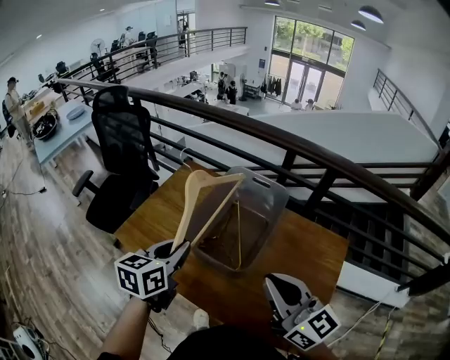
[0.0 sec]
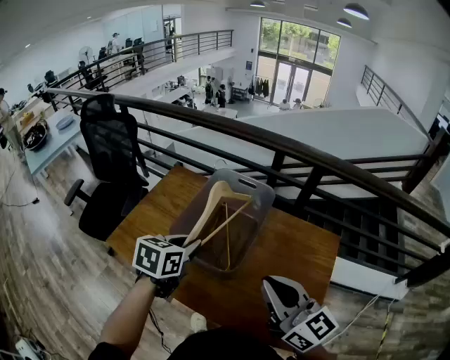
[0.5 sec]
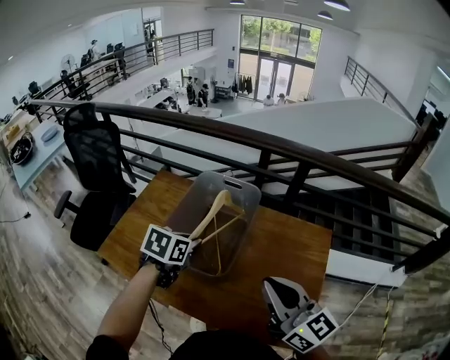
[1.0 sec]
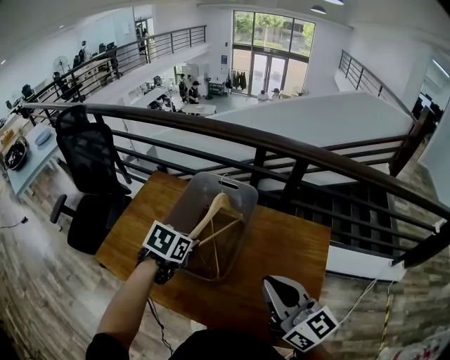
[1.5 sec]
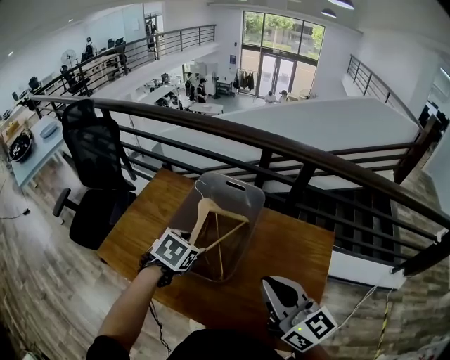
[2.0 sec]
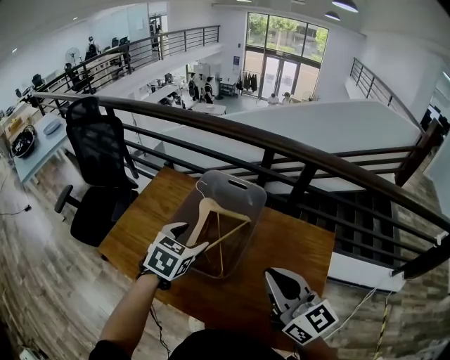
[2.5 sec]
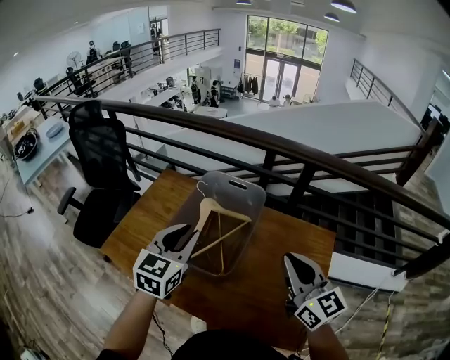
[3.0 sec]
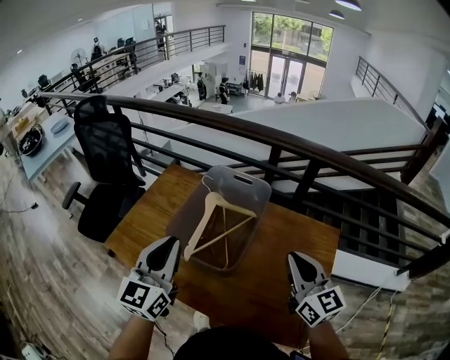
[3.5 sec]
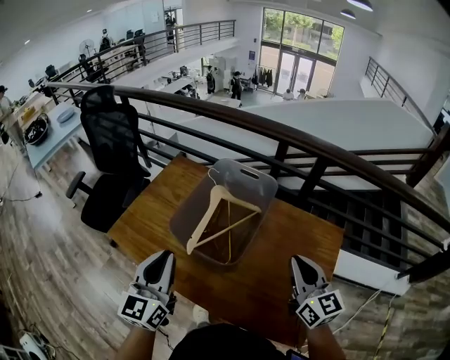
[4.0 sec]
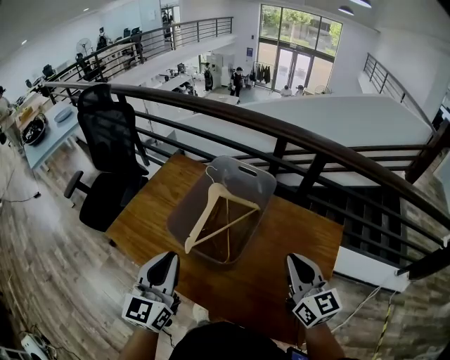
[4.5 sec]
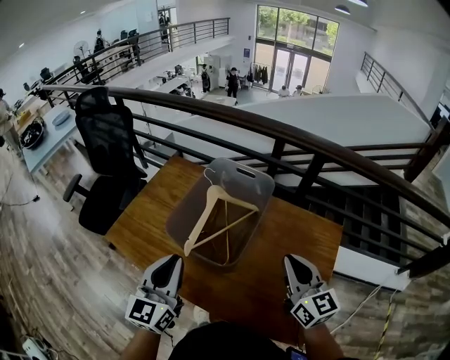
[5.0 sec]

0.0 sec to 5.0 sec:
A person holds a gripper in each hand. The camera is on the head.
0.0 sec to 2.5 sec: The left gripper is displaced to the right and forward by some 10 cm, swivels roughly 30 degrees, and opens up, while the right gripper moves some 5 cm.
2.5 sec to 5.0 sec: The left gripper moves backward and to the left, roughly 15 cm, points its fingers about 40 degrees further upward, and closes. Meanwhile the right gripper goes about 10 cm downward and to the right.

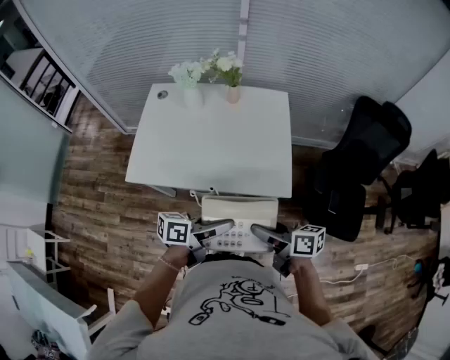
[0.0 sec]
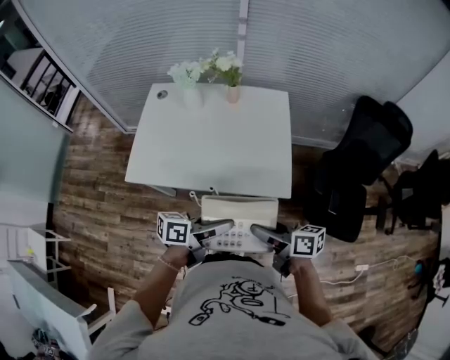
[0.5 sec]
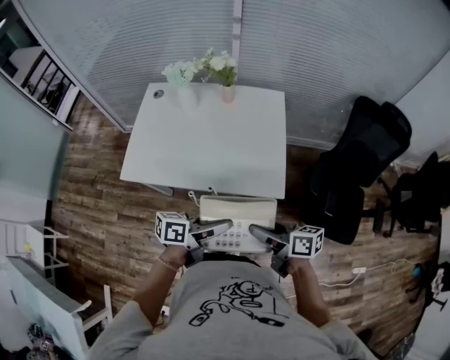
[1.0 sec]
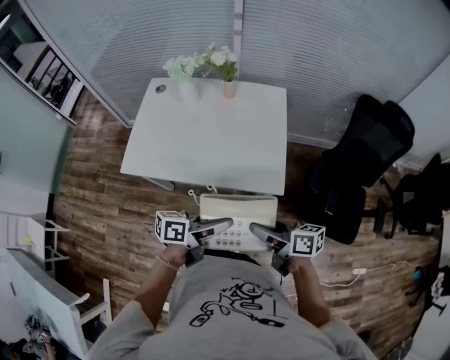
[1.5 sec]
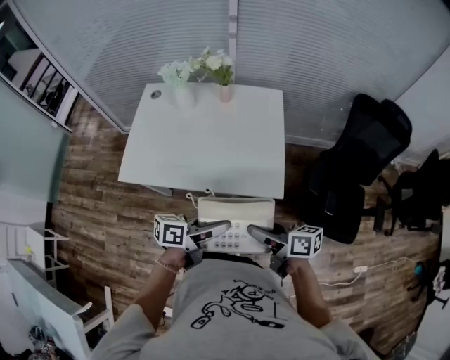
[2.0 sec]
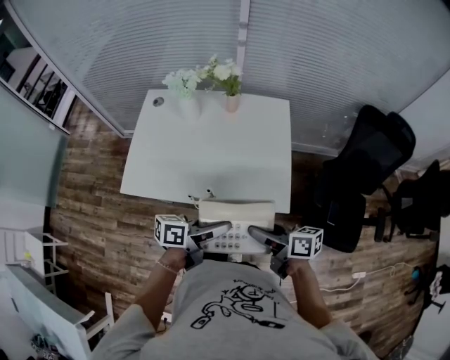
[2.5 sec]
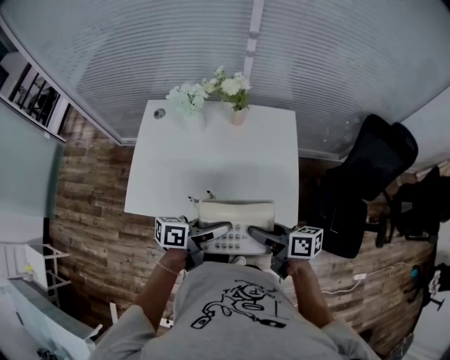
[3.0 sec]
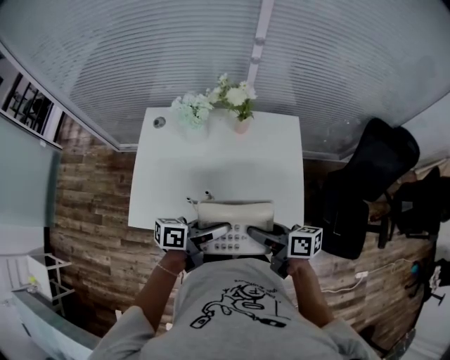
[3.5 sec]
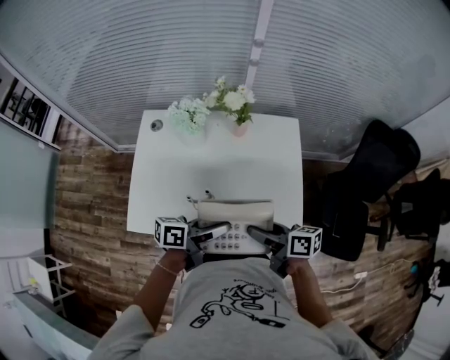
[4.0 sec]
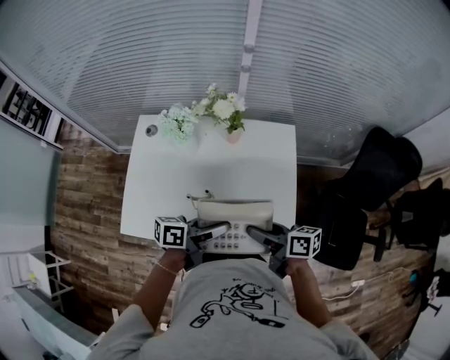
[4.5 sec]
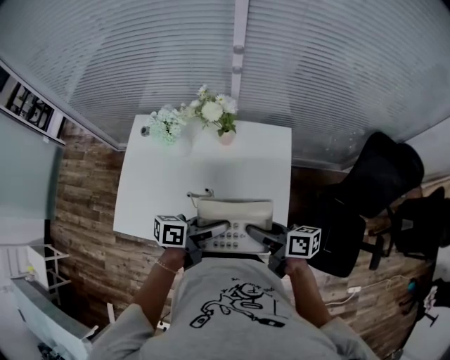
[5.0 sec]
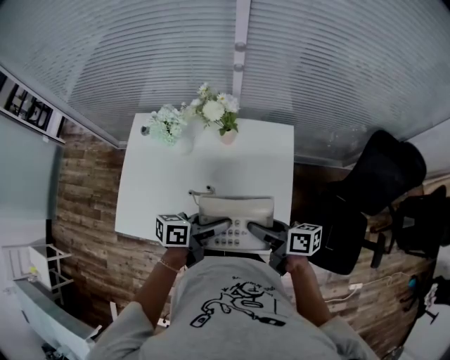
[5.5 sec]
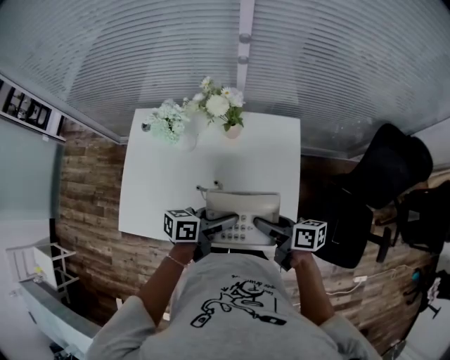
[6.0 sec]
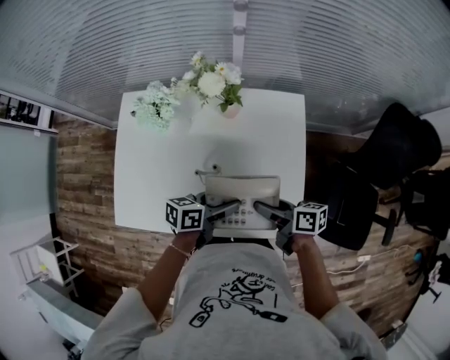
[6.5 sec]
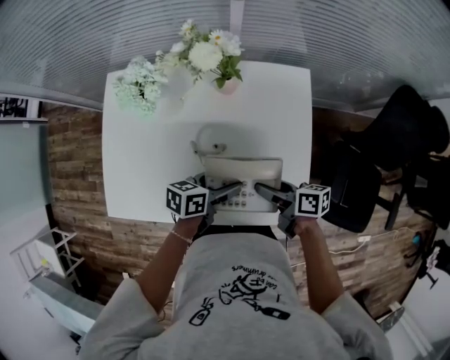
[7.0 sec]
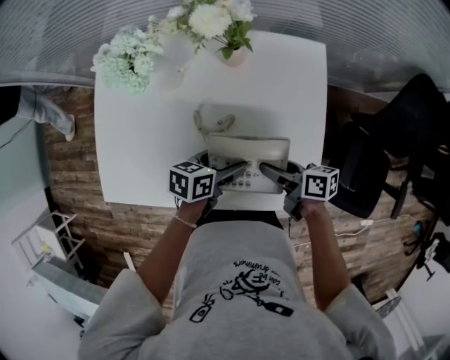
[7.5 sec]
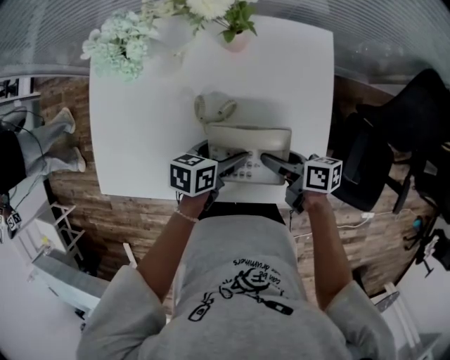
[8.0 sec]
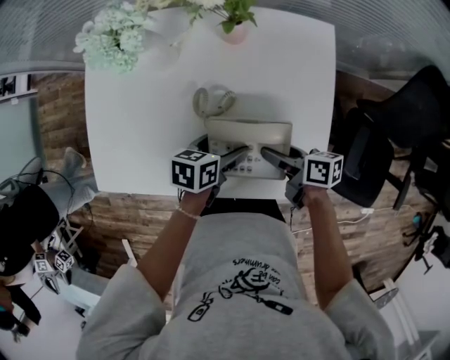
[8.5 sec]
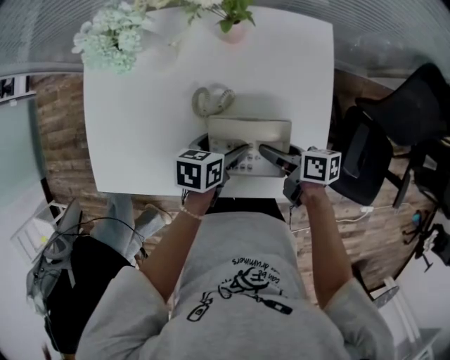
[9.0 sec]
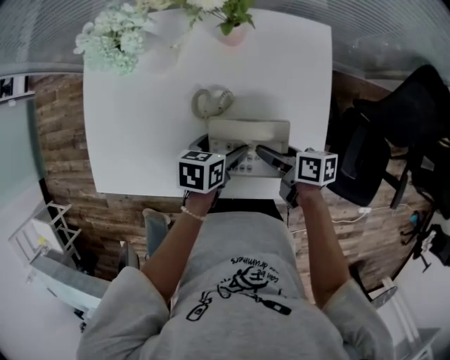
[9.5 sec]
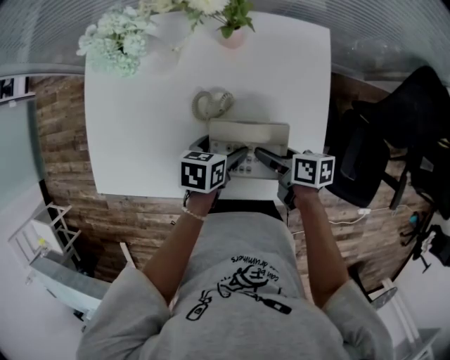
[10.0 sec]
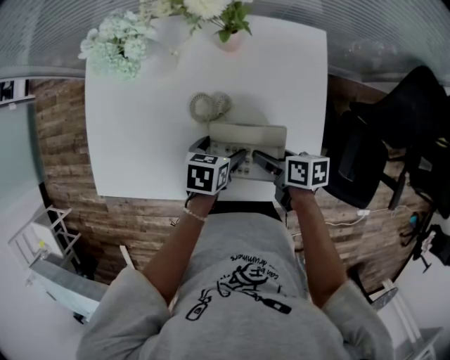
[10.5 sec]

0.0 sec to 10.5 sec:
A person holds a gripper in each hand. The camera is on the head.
0.0 sec to 2.0 sec: Both grippers stay put.
2.0 sec to 4.0 sec: The grippers both shift forward and to the left by about 20 cm.
4.0 sec to 6.5 sec: The left gripper shifts some 15 cm downward, forward and to the right. Meanwhile the right gripper is displaced forward, downward and to the right by about 15 cm.
6.5 sec to 8.5 sec: The two grippers go approximately 10 cm downward. The left gripper changes its angle by some 20 degrees.
8.5 sec to 10.5 sec: There are only small adjustments of the grippers.

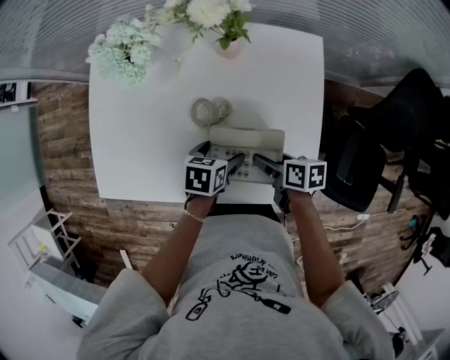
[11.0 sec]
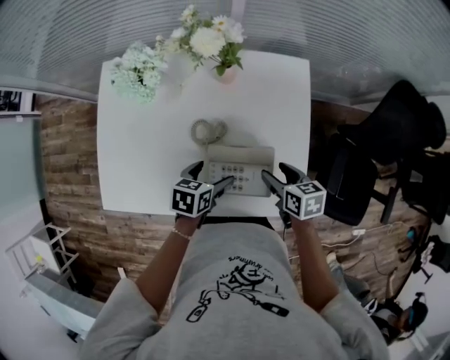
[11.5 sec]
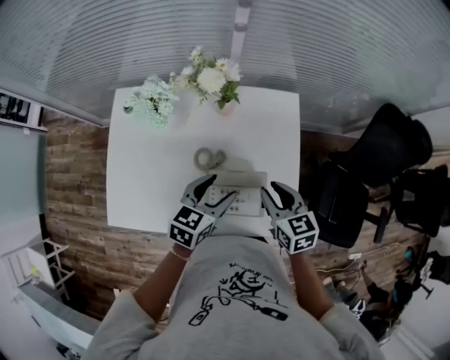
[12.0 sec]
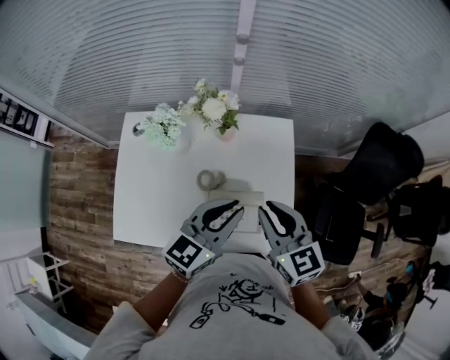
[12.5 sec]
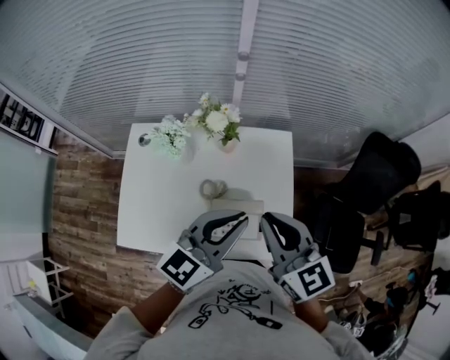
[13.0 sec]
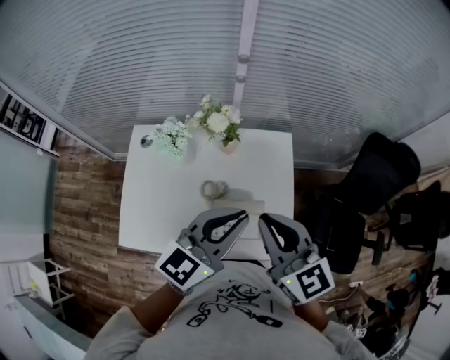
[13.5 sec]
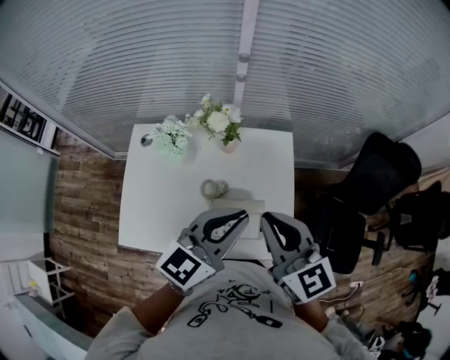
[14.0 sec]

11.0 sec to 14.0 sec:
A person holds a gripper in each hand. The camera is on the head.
11.0 sec to 12.5 sec: Both grippers move upward, about 30 cm. The right gripper changes its angle by some 60 degrees, and closes its fingers; the left gripper tilts its fingers roughly 50 degrees upward, and closes.
12.5 sec to 14.0 sec: Both grippers move upward, approximately 10 cm.

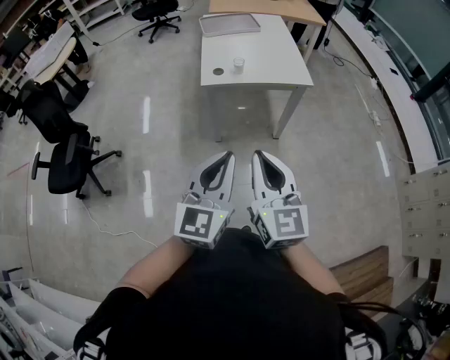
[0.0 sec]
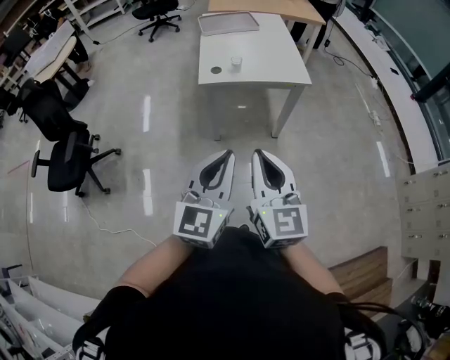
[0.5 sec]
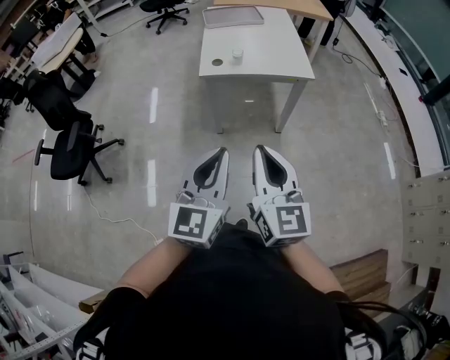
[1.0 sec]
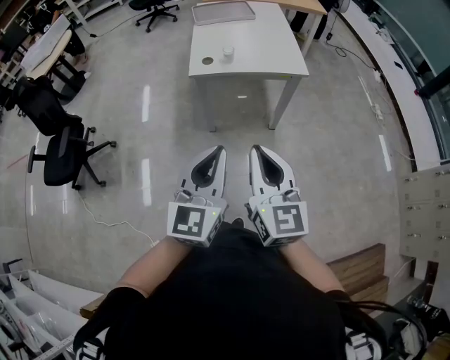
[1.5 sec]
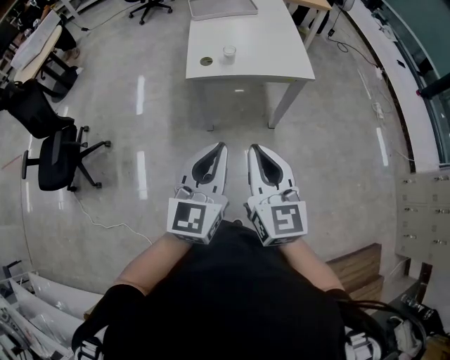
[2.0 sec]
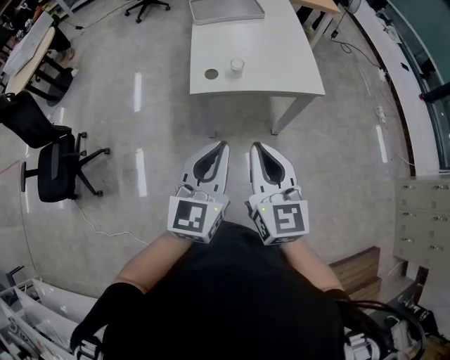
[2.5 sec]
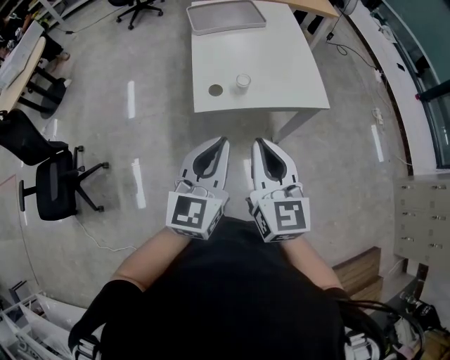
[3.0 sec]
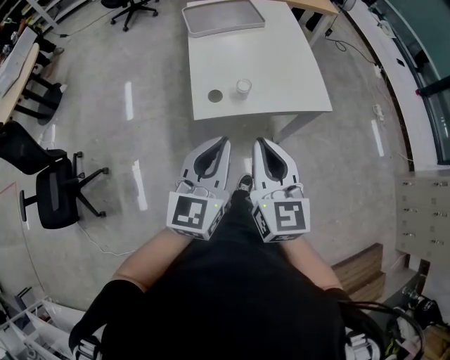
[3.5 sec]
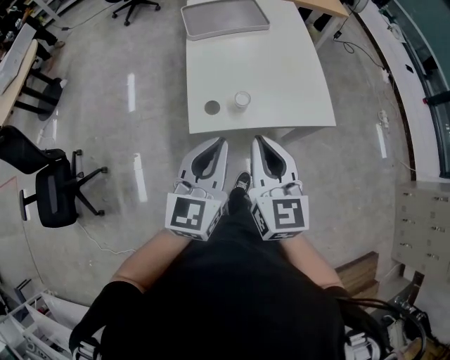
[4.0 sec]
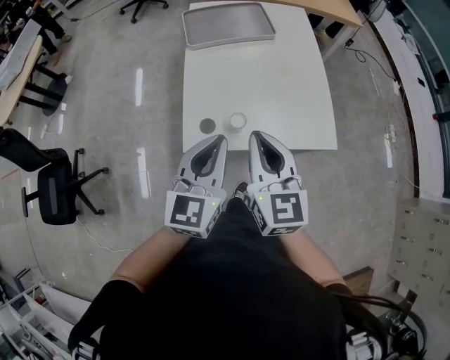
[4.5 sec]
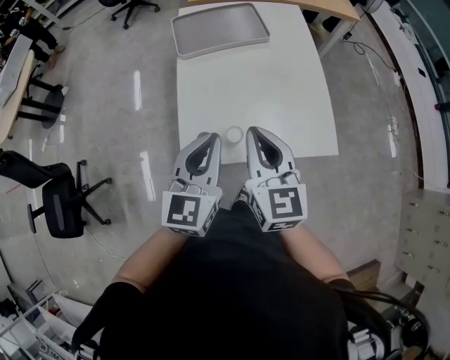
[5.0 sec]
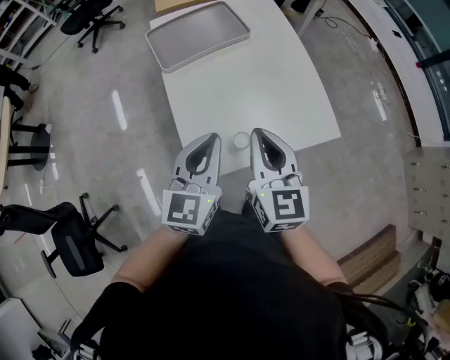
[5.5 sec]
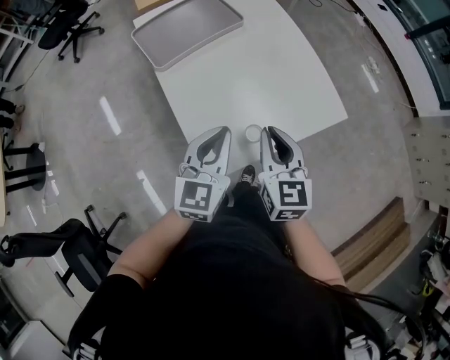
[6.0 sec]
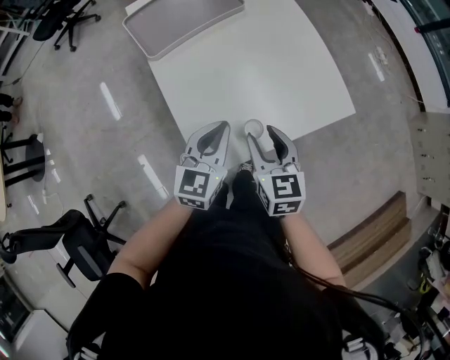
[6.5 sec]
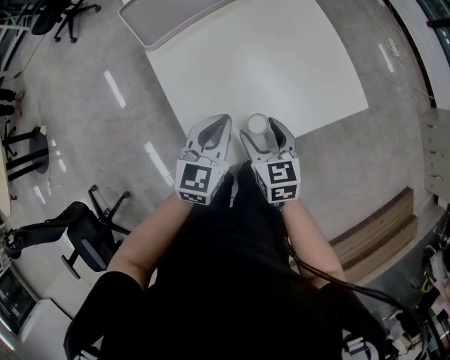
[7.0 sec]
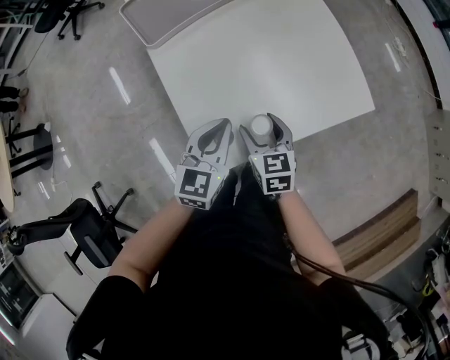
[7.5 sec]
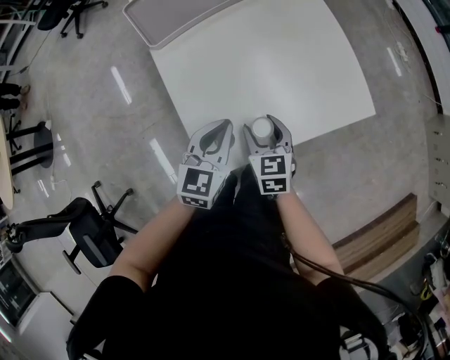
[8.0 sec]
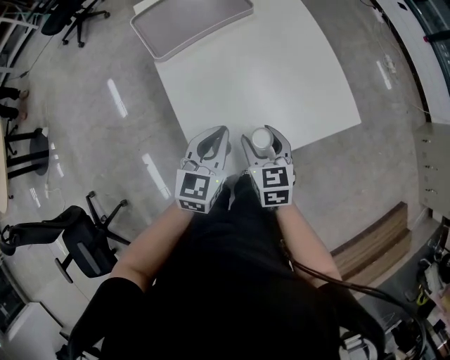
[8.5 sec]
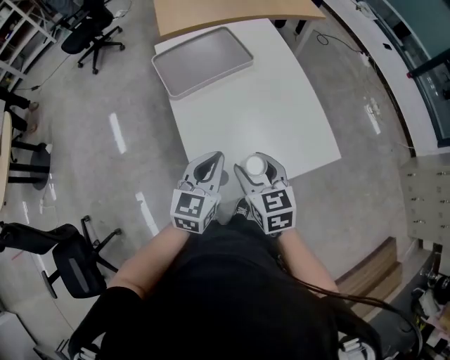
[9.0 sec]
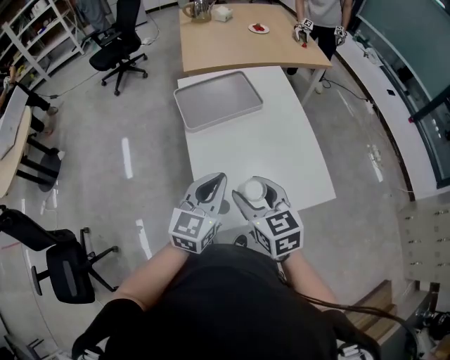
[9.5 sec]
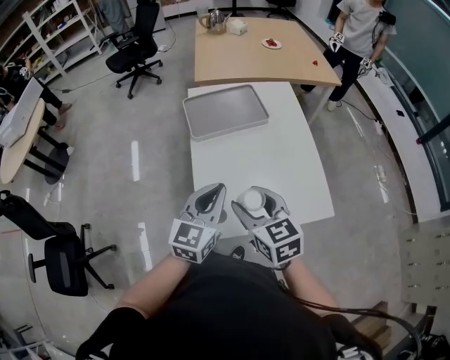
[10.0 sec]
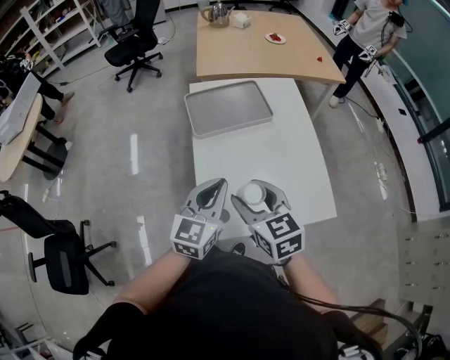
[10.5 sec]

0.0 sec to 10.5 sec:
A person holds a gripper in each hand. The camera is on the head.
0.0 sec to 2.0 sec: The grippers both shift forward by roughly 15 cm.
2.0 sec to 4.0 sec: Both grippers move forward, about 35 cm.
4.0 sec to 6.5 sec: The right gripper ends up about 30 cm from where it was, changes its angle by roughly 20 degrees, and opens up. The left gripper changes place by some 30 cm, and rotates approximately 30 degrees.
6.5 sec to 8.5 sec: The right gripper is displaced downward by about 5 cm, and opens up.
8.5 sec to 10.5 sec: The grippers both shift upward by about 20 cm. The right gripper swivels some 30 degrees.
